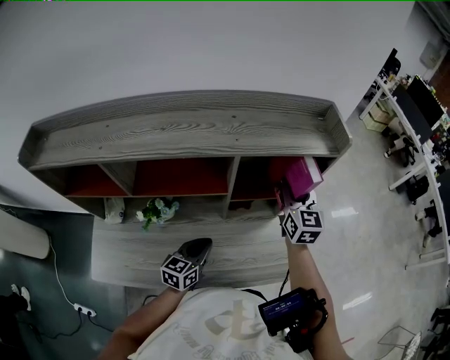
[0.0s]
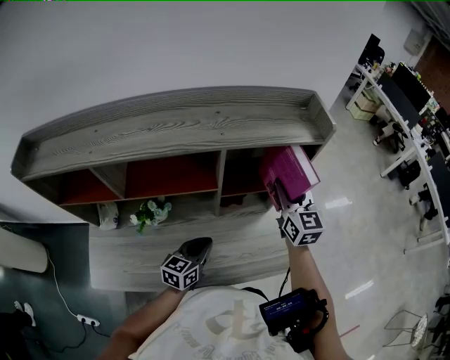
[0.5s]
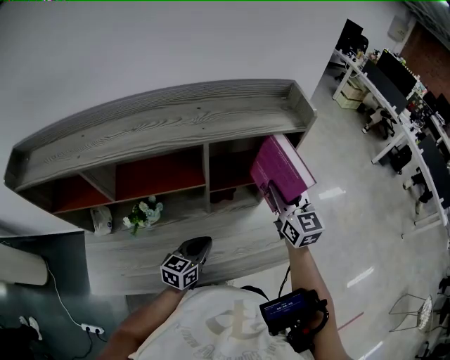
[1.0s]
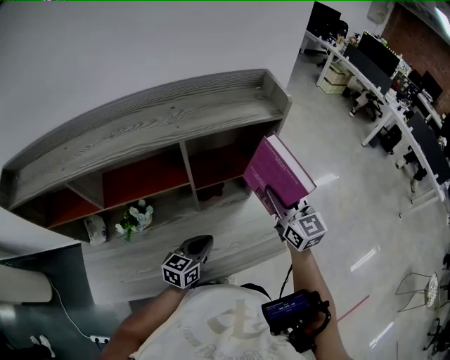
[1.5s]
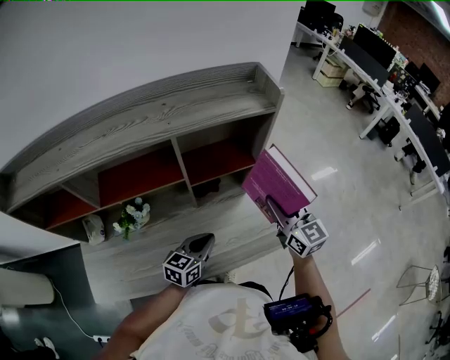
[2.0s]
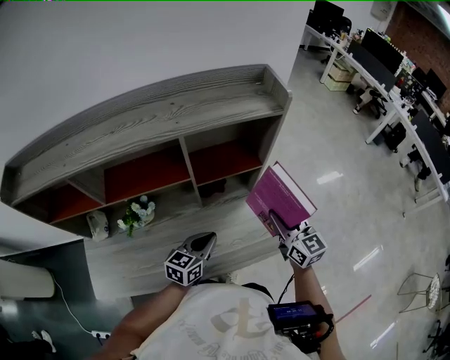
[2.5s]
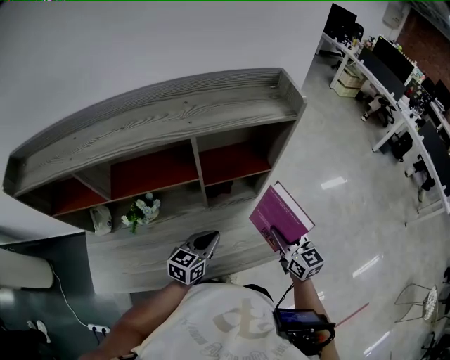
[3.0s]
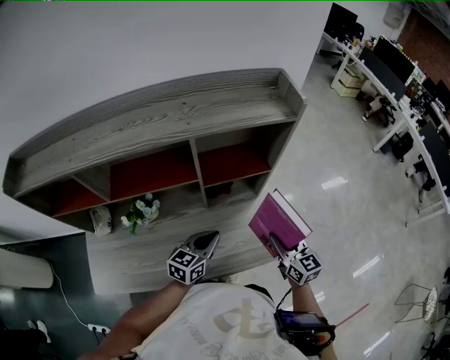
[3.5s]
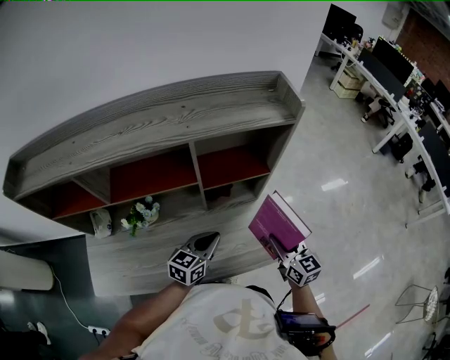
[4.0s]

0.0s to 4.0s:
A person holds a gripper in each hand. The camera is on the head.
0.0s to 2.0s: The right gripper is displaced backward and to the right by about 15 cm. Meanwhile the left gripper moves to the right, roughly 10 cm.
2.0s to 4.0s: The right gripper moves downward and backward, roughly 15 cm.

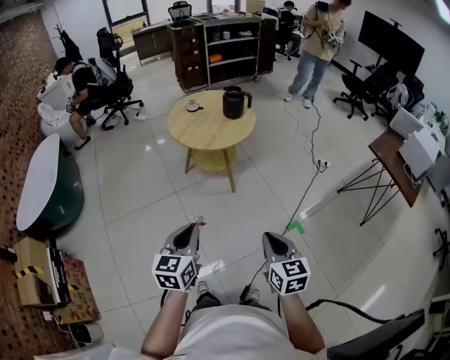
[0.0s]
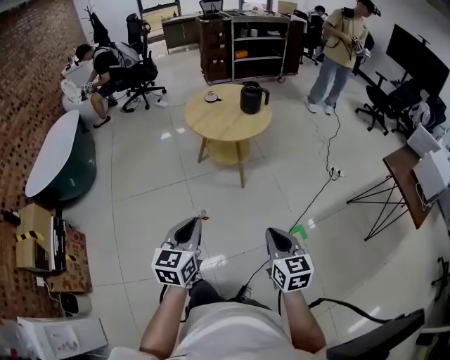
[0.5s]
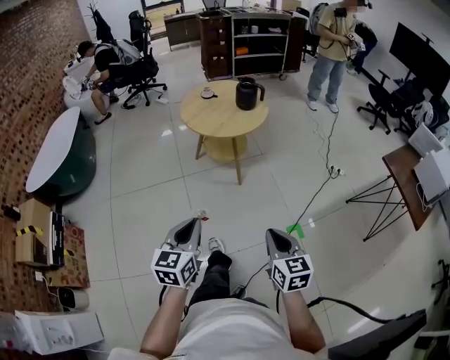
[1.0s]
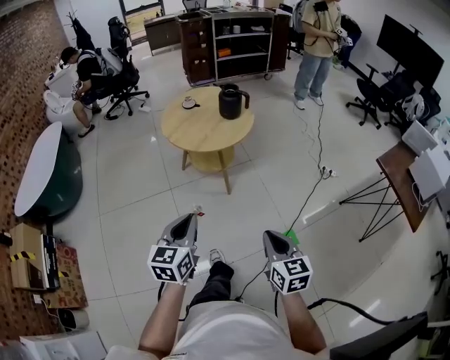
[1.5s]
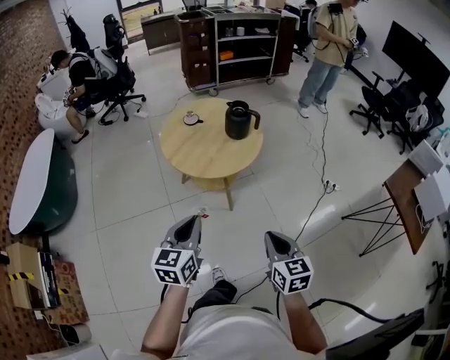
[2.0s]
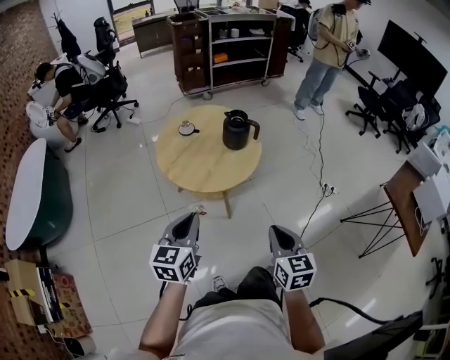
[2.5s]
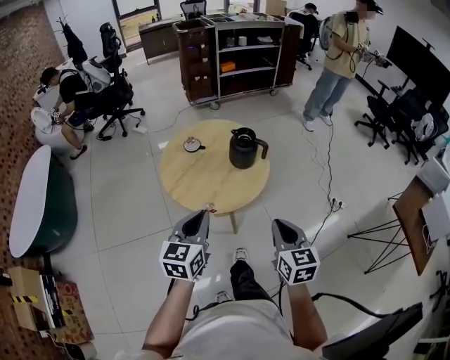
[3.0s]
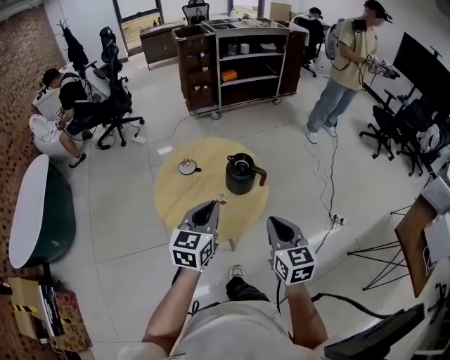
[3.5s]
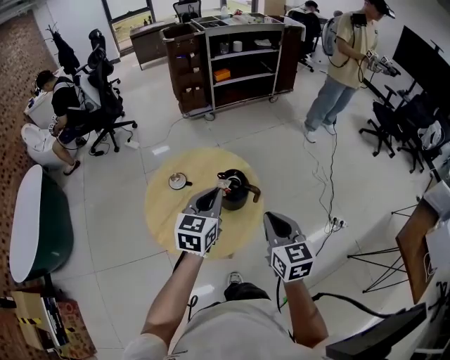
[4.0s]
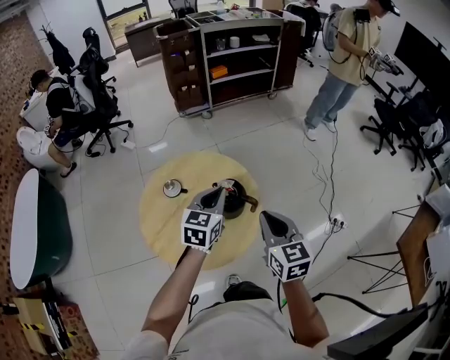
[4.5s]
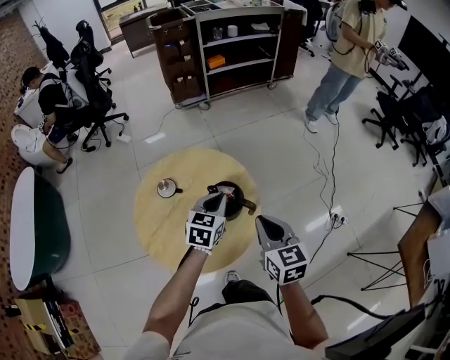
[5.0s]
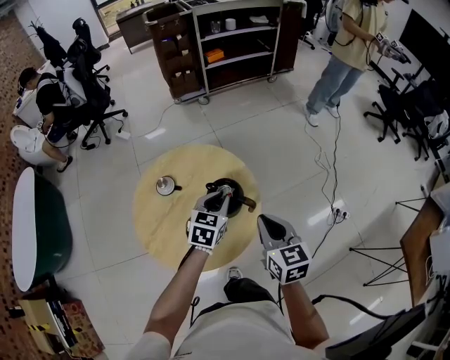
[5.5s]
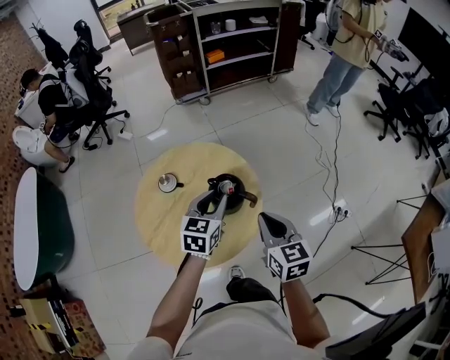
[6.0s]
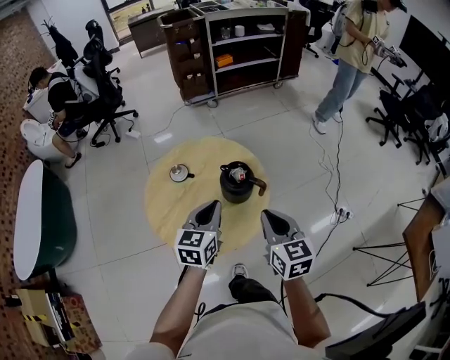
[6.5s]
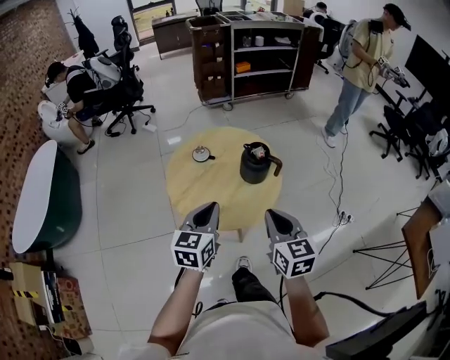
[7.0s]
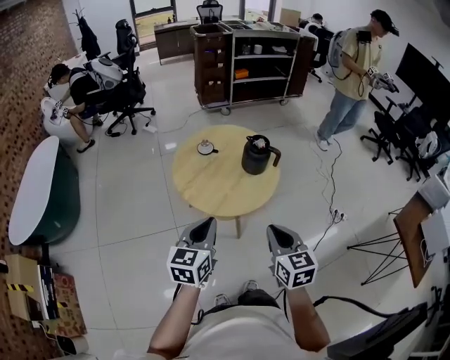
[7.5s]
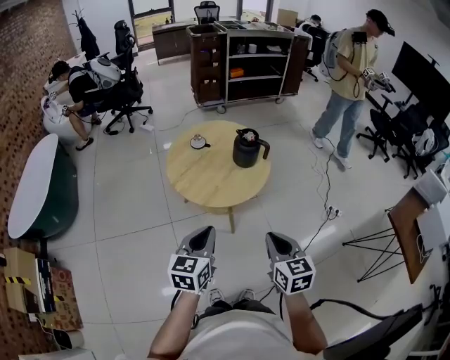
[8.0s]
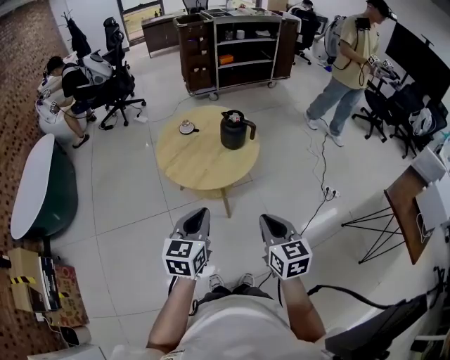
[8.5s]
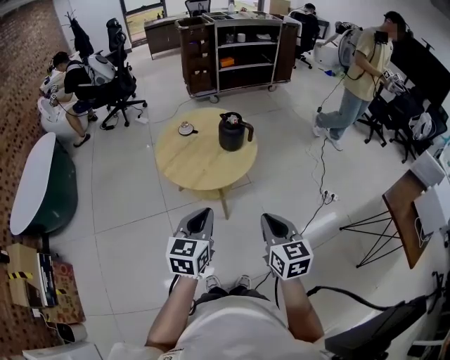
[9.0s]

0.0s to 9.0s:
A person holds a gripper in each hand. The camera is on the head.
0.0s to 2.0s: Both grippers travel together forward, some 25 cm.
2.0s to 4.5s: The pair of grippers is taken forward, approximately 50 cm.
4.5s to 7.0s: The two grippers go some 20 cm backward and to the left. The left gripper opens and closes again.
7.0s to 9.0s: The grippers both shift backward by roughly 20 cm.

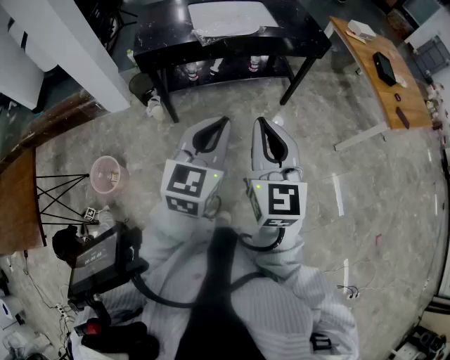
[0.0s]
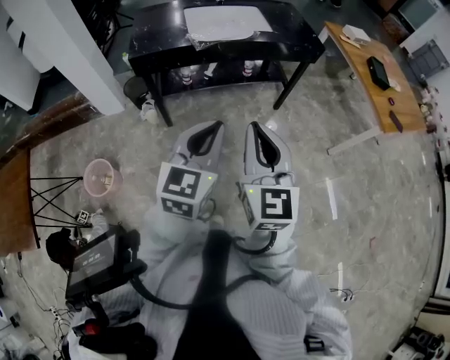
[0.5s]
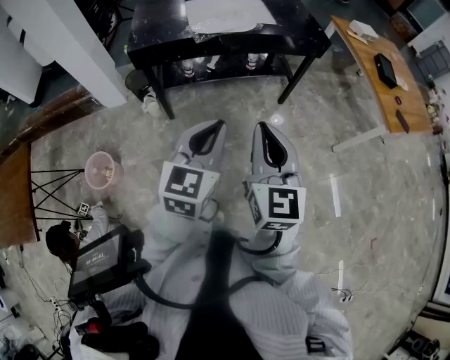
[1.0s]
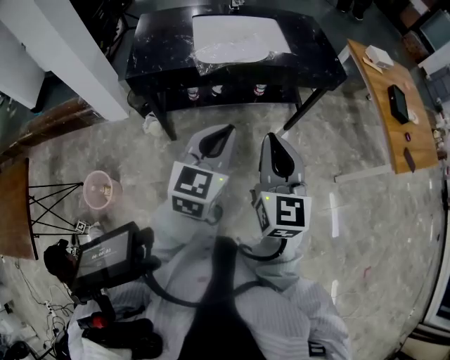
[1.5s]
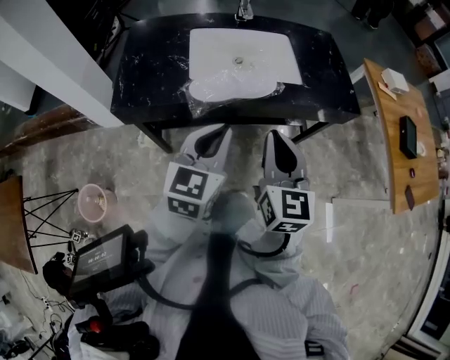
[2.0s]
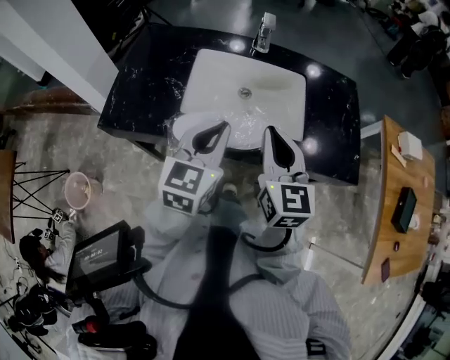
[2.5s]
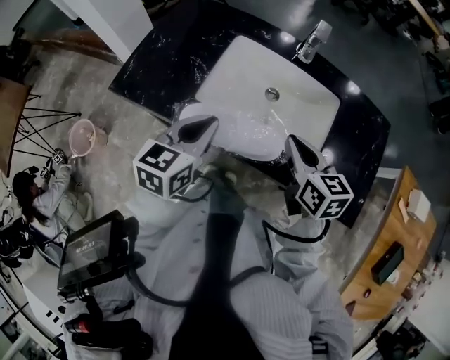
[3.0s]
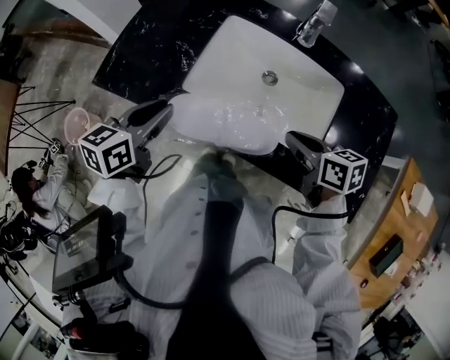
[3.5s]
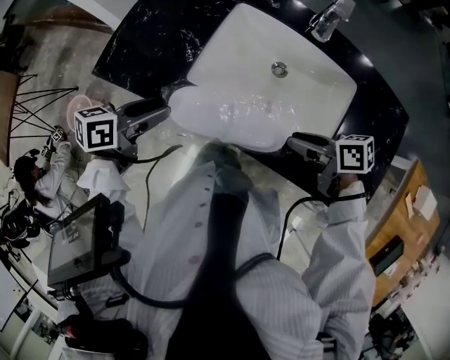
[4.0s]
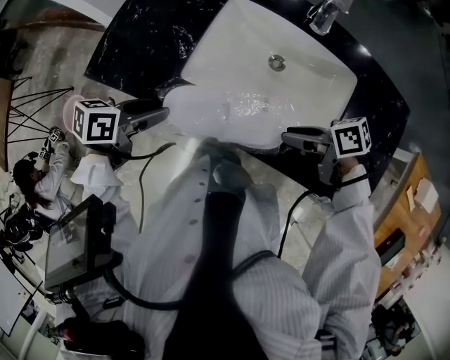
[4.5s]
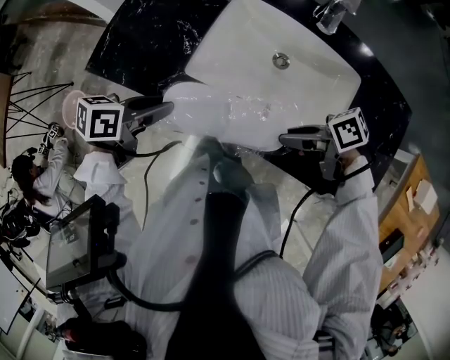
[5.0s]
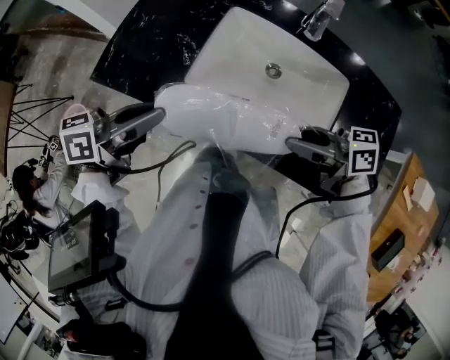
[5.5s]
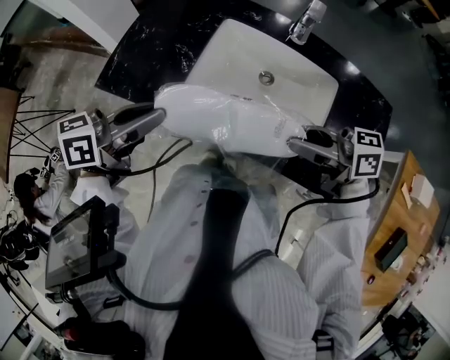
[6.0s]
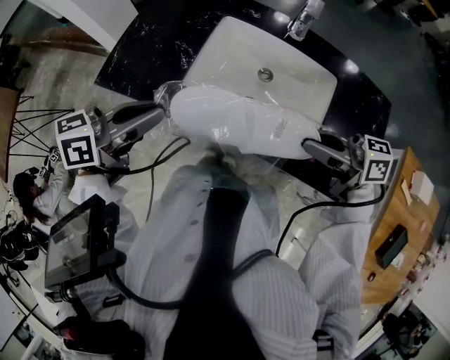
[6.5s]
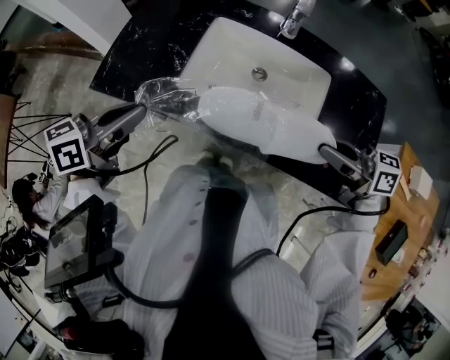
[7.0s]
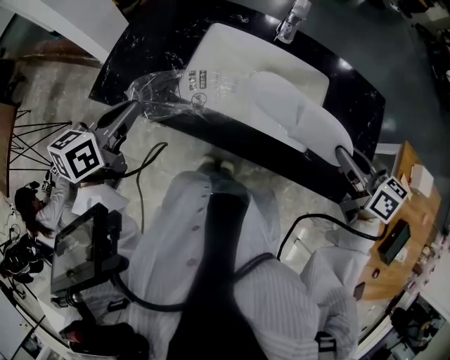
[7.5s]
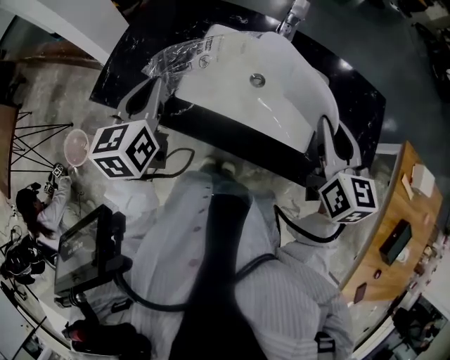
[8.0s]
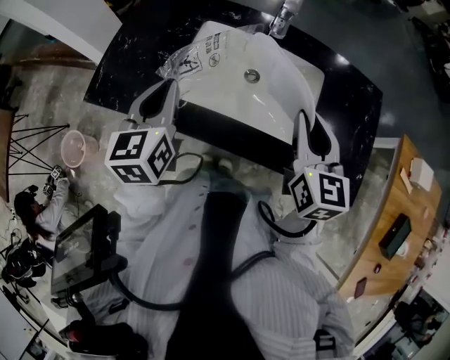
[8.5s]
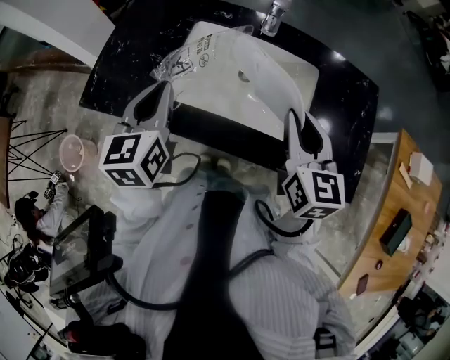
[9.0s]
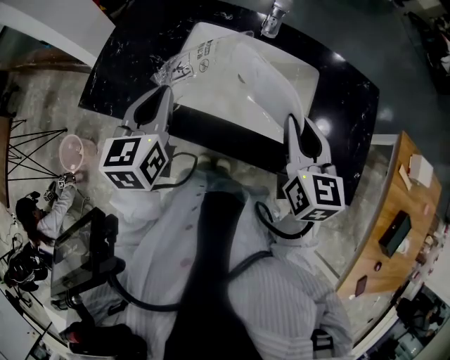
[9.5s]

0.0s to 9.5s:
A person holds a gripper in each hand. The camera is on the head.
0.0s to 2.0s: The grippers both shift forward by roughly 35 cm.
2.0s to 4.0s: The left gripper moves about 25 cm, rotates around the line of its fingers by about 50 degrees, counterclockwise from behind, and opens. Meanwhile the right gripper ends up roughly 35 cm from where it was, turns by about 100 degrees, and opens its fingers.
4.0s to 5.5s: Both grippers move upward, roughly 10 cm. The right gripper rotates about 30 degrees, while the left gripper closes up.
5.5s to 7.5s: The left gripper moves about 5 cm, and changes its angle by some 30 degrees, while the right gripper shifts by roughly 15 cm, and swivels some 40 degrees.
7.5s to 9.5s: The left gripper travels to the right by roughly 10 cm, and swivels some 20 degrees. The right gripper travels to the left by roughly 10 cm, and changes its angle by approximately 40 degrees.

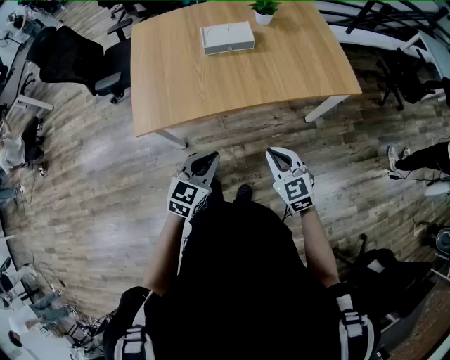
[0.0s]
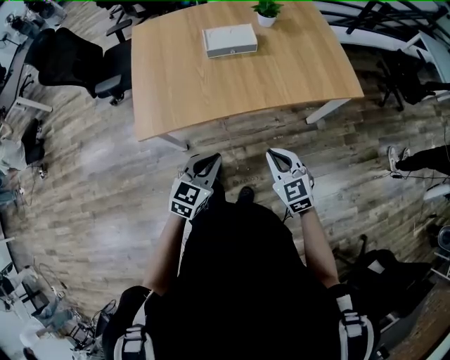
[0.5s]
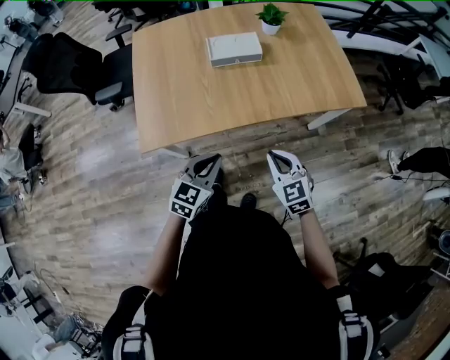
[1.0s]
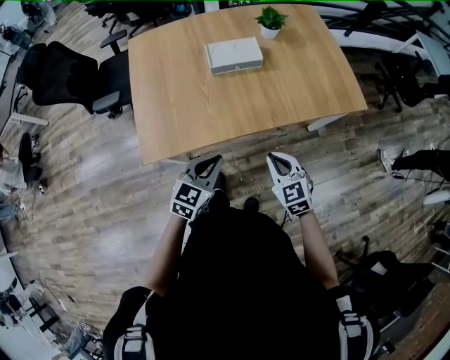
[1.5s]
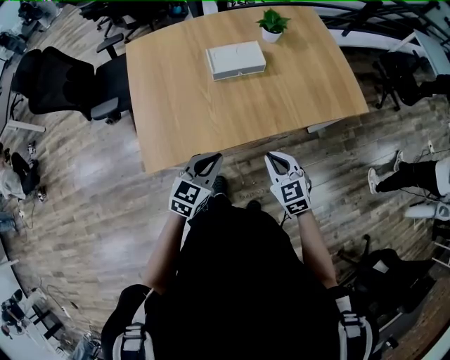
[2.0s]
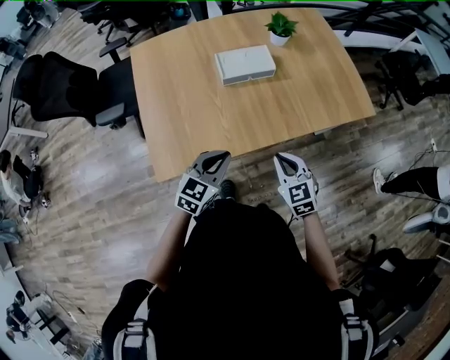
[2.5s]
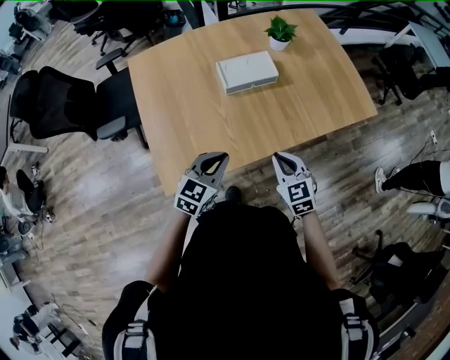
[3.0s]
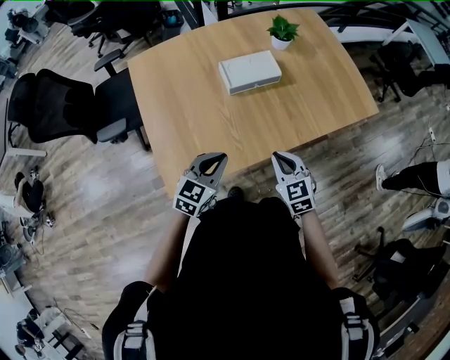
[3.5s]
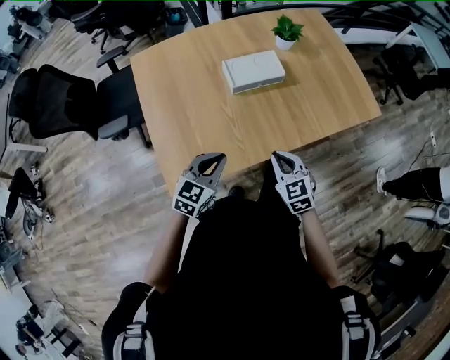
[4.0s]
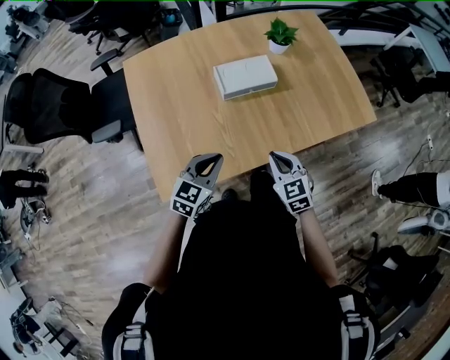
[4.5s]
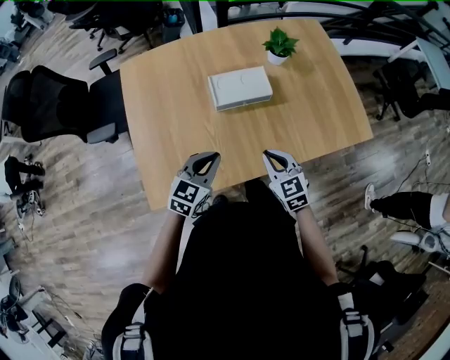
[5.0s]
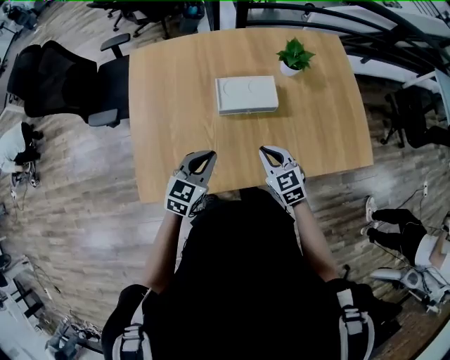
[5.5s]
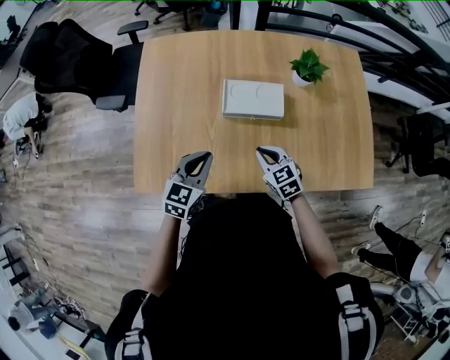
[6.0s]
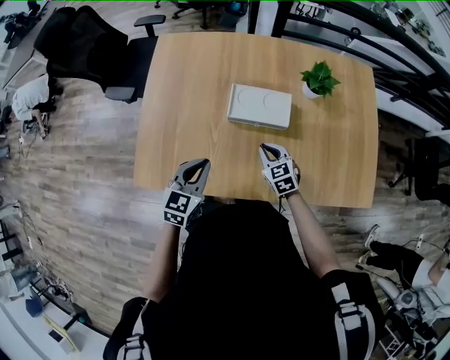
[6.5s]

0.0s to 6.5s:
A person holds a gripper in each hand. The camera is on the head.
0.0s to 2.0s: Both grippers move forward and to the left, approximately 20 cm.
2.0s to 4.5s: Both grippers move forward and to the left, approximately 15 cm.
4.5s to 6.5s: The right gripper moves roughly 25 cm, and rotates some 30 degrees; the left gripper moves roughly 10 cm, and turns by some 30 degrees.
